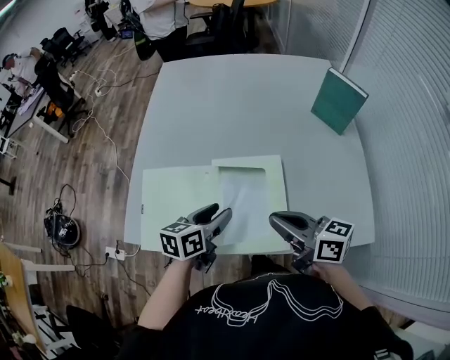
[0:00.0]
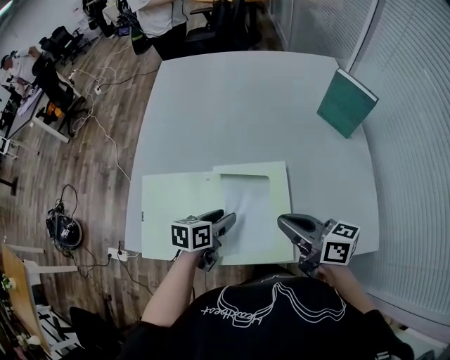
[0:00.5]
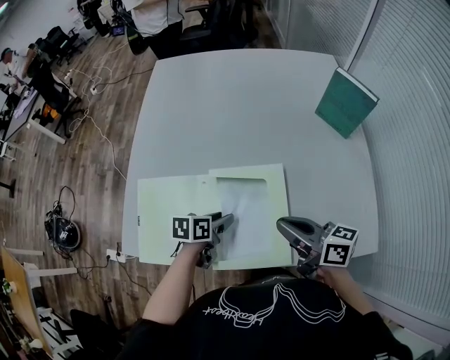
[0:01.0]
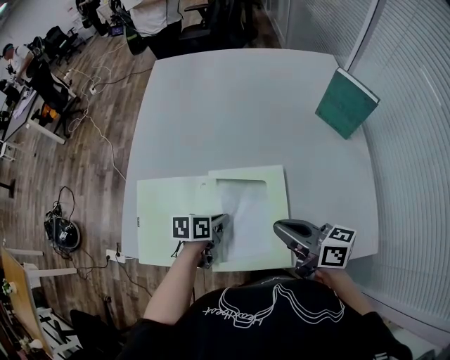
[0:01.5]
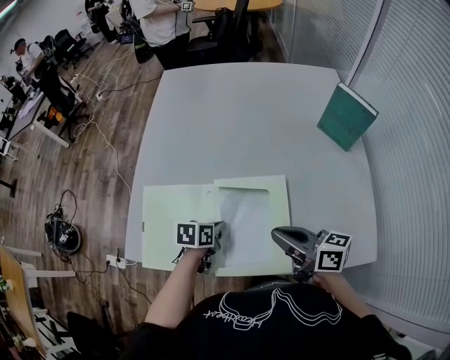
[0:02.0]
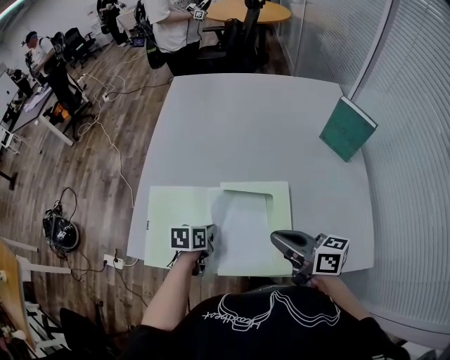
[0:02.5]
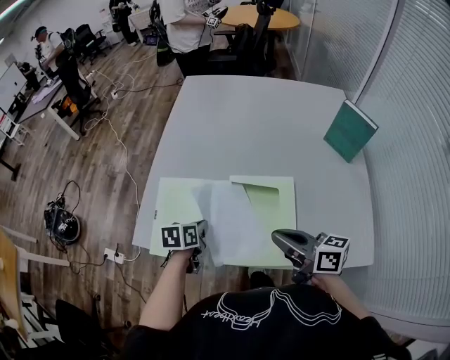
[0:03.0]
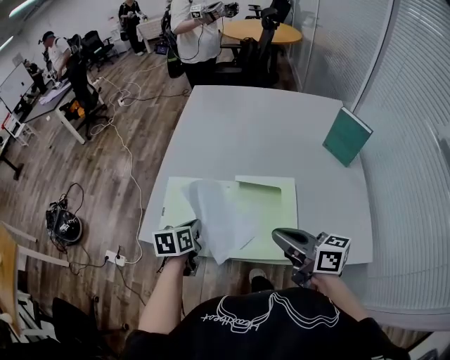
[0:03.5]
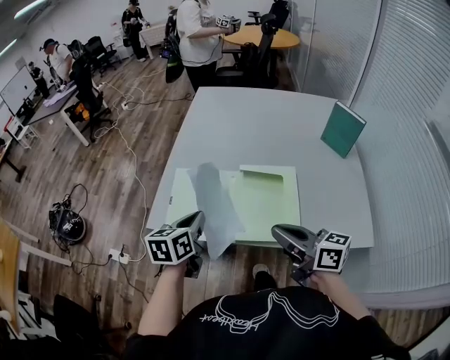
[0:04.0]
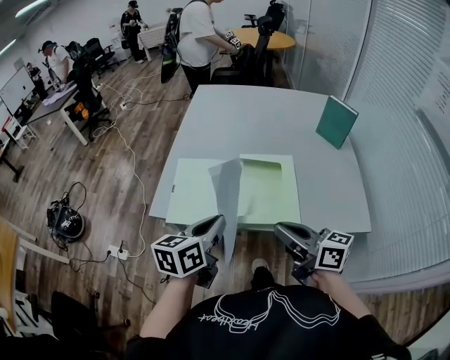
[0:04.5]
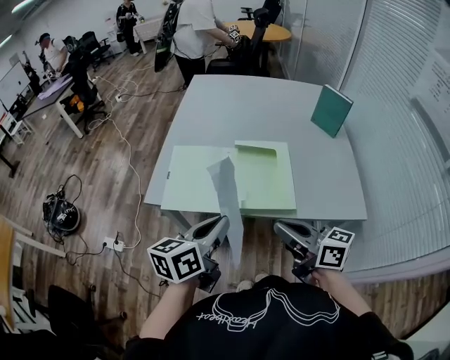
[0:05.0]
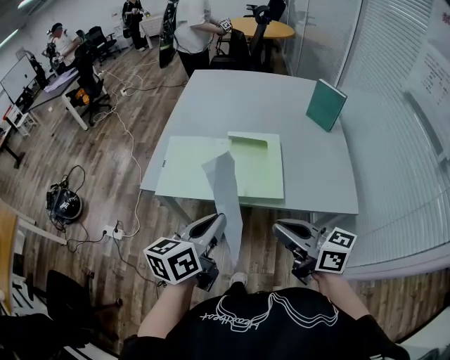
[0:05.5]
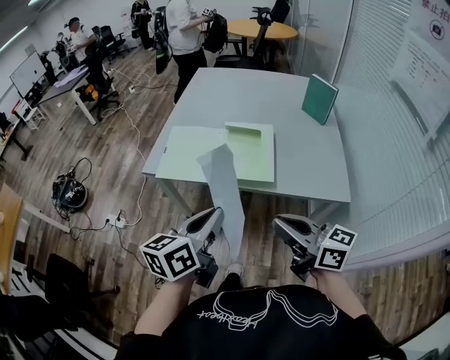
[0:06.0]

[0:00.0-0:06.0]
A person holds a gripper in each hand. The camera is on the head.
0:00.0 to 0:02.0: The right gripper ends up approximately 5 cm from where it was; the left gripper is displaced downward by about 10 cm, rotates about 20 degrees, and closes.
0:02.0 to 0:04.0: The left gripper moves upward, to the left and backward, about 25 cm, and changes its angle by some 30 degrees; the right gripper is displaced backward, to the left and upward by about 20 cm.
0:04.0 to 0:06.0: The two grippers go approximately 30 cm backward.

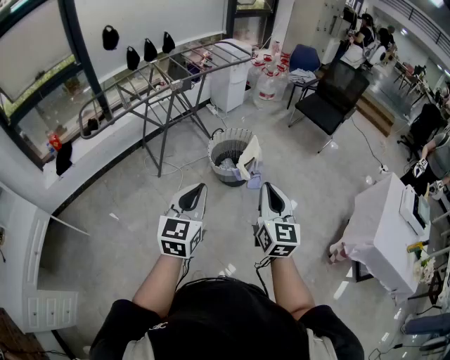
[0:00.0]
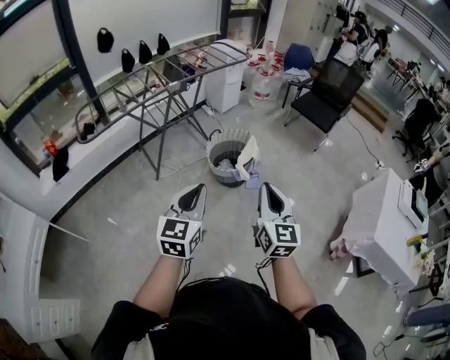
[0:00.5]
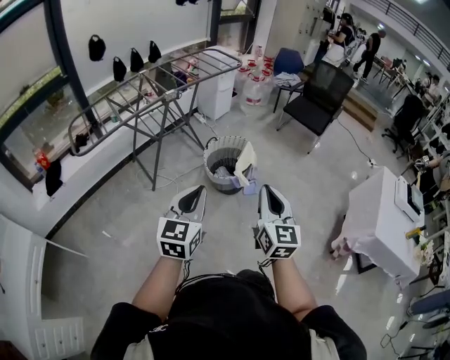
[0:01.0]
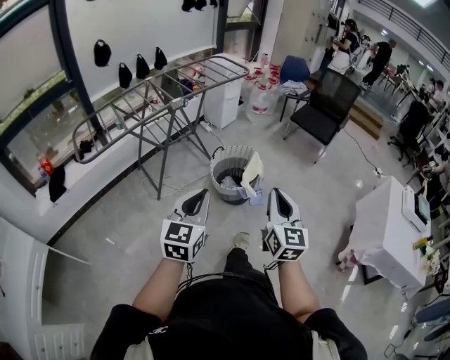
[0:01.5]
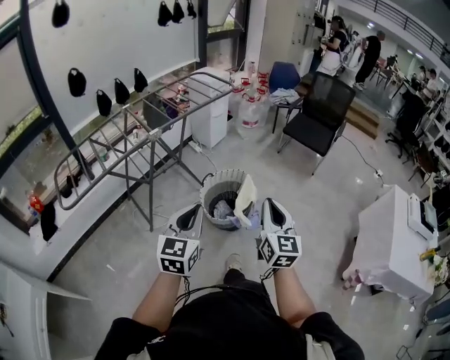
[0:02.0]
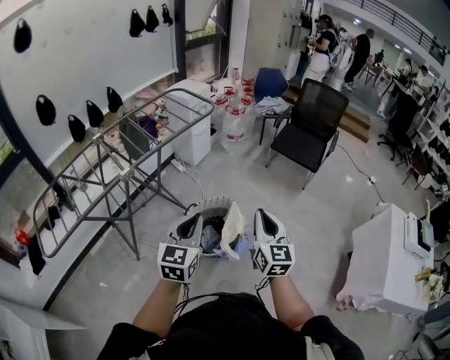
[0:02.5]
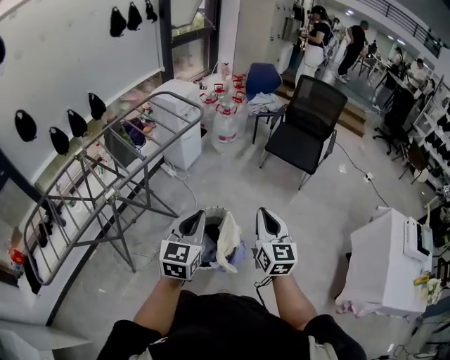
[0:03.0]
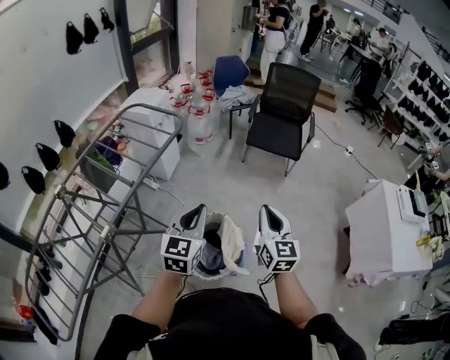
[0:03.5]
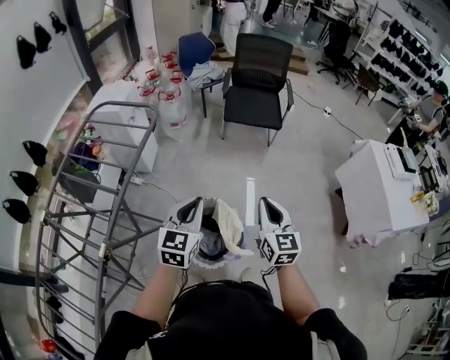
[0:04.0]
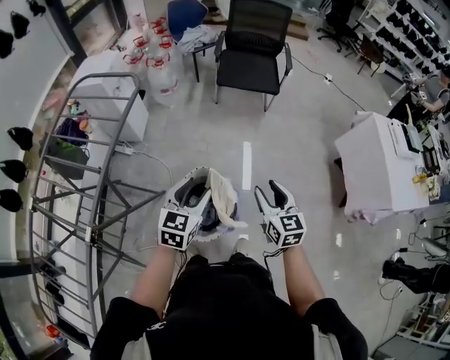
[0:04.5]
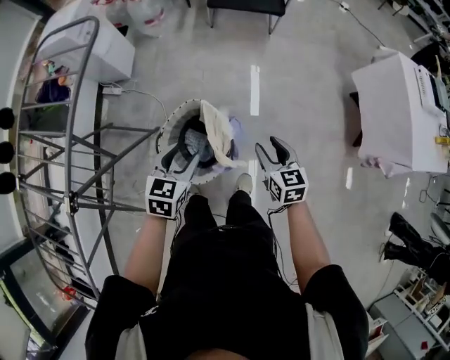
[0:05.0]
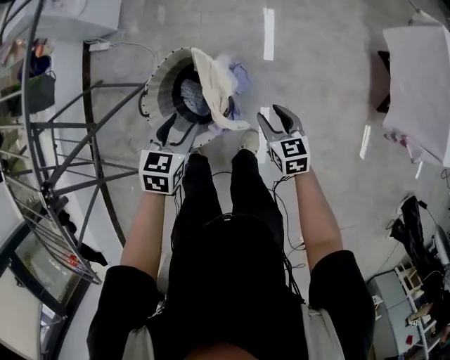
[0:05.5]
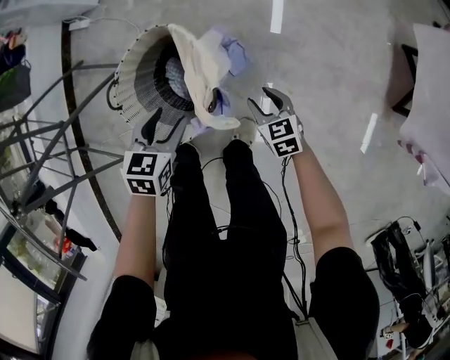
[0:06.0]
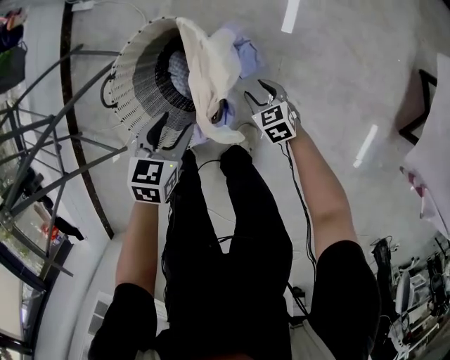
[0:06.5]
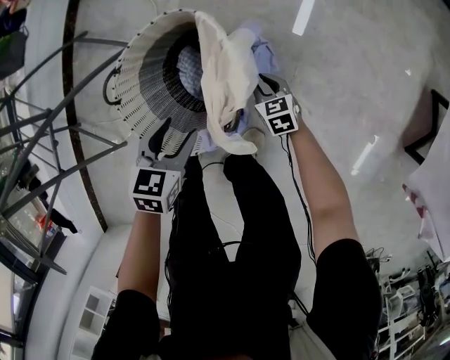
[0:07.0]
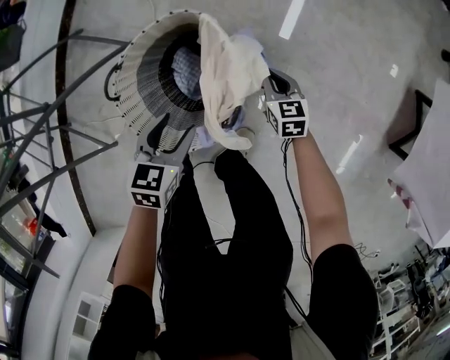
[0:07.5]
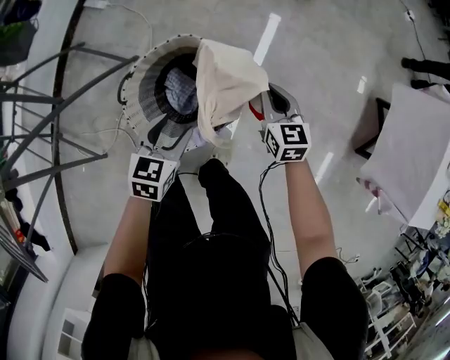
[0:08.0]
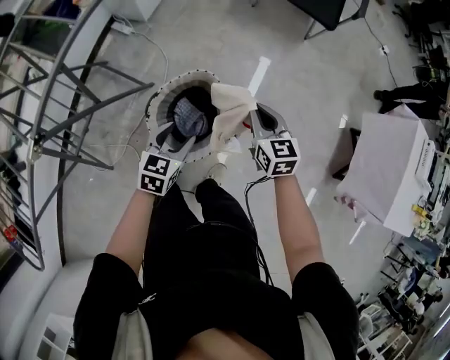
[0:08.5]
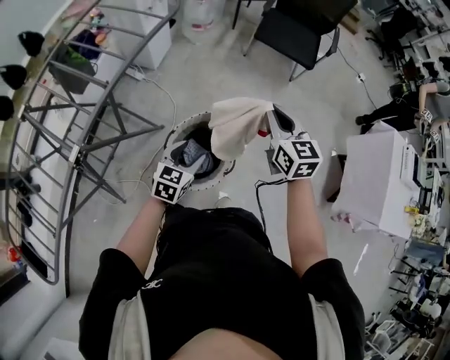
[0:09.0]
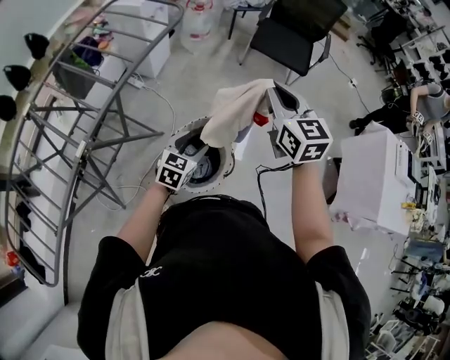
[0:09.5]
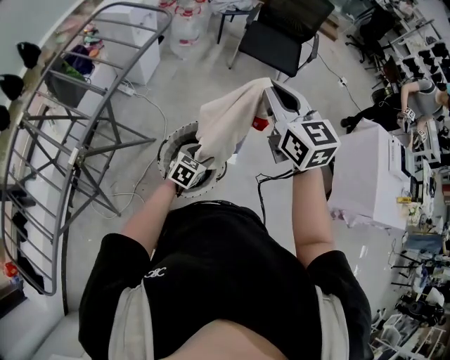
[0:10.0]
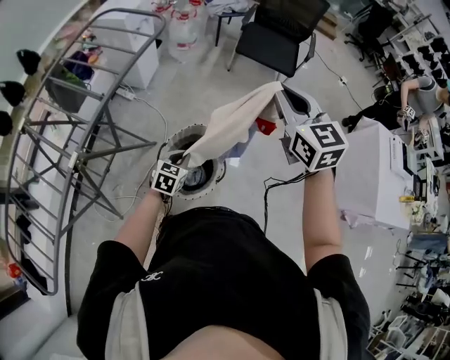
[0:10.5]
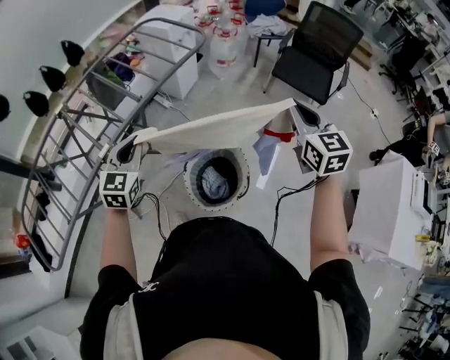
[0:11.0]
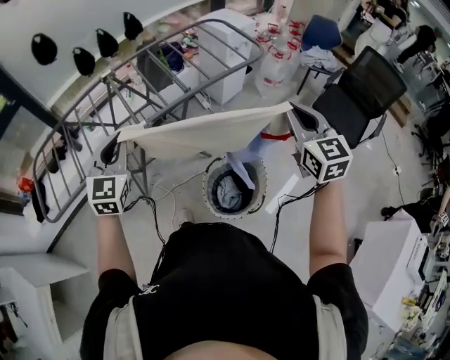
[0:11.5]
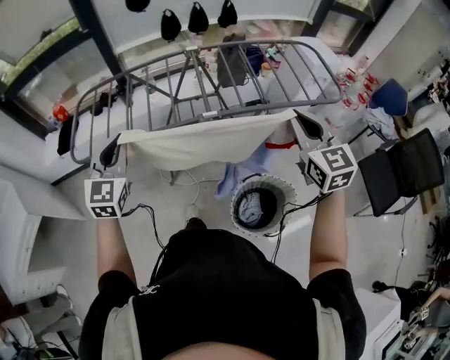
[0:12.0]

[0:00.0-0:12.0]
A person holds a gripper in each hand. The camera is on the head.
0:00.0 to 0:02.0: The grippers both shift forward by some 25 cm.
0:02.0 to 0:04.0: The left gripper ends up approximately 50 cm from where it was, and swivels about 40 degrees; the right gripper moves approximately 40 cm, and rotates approximately 30 degrees.
0:04.0 to 0:06.0: The grippers both shift downward by some 60 cm. The right gripper angles its fingers downward, by some 40 degrees, and opens its fingers. Meanwhile the left gripper tips its fingers downward by some 40 degrees, and opens its fingers.
0:06.0 to 0:08.0: The right gripper moves upward and forward, approximately 20 cm, and closes. Meanwhile the left gripper moves to the left, roughly 5 cm, and travels downward and back again, some 10 cm each way.
0:08.0 to 0:10.0: The left gripper moves upward, some 15 cm. Meanwhile the right gripper is displaced upward by roughly 60 cm, and rotates some 30 degrees.
0:10.0 to 0:12.0: The left gripper shifts by some 60 cm, turns by some 90 degrees, and closes its fingers. Meanwhile the right gripper changes place by some 30 cm, and changes its angle by some 50 degrees.

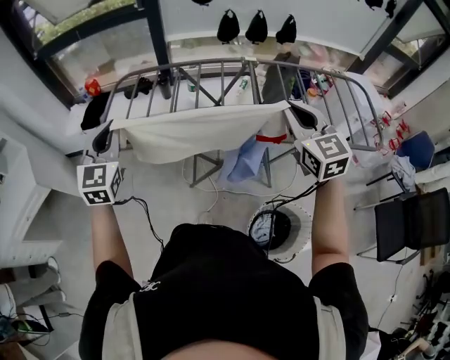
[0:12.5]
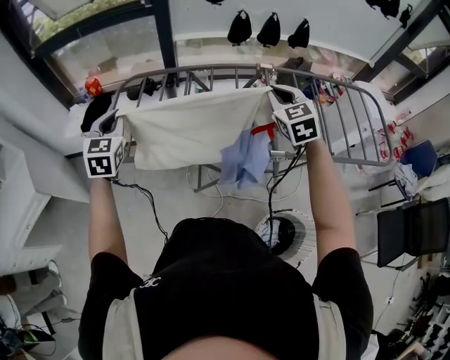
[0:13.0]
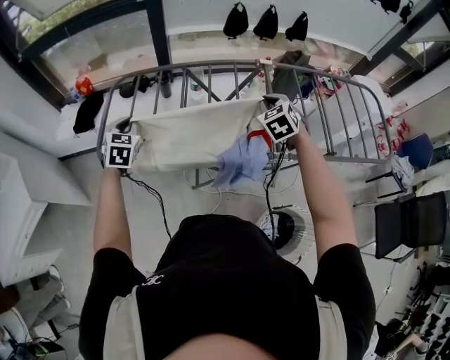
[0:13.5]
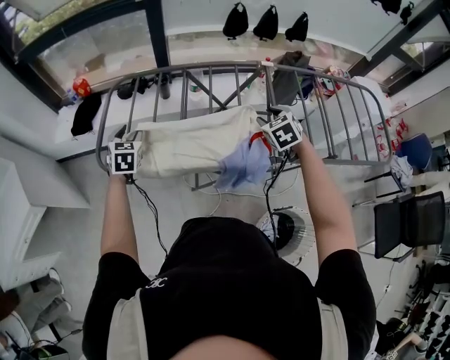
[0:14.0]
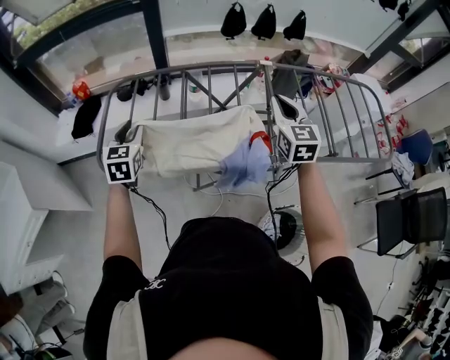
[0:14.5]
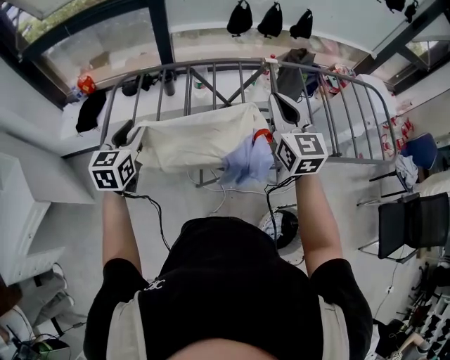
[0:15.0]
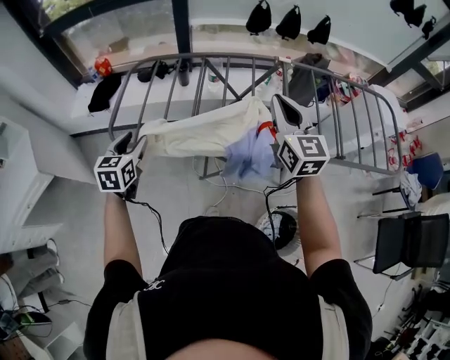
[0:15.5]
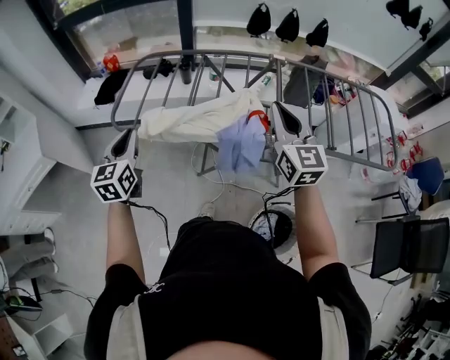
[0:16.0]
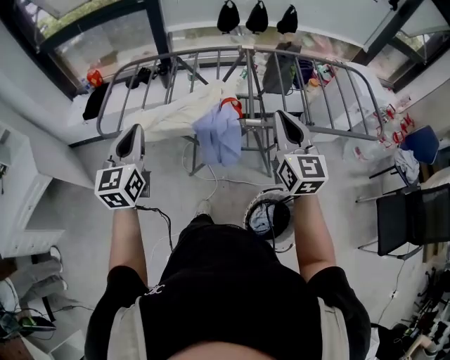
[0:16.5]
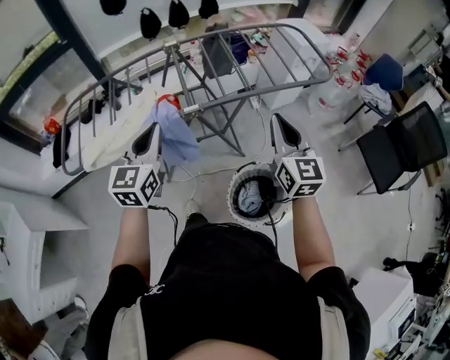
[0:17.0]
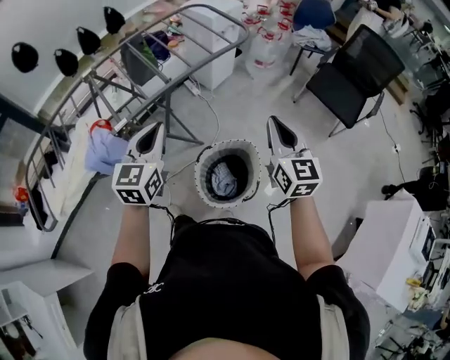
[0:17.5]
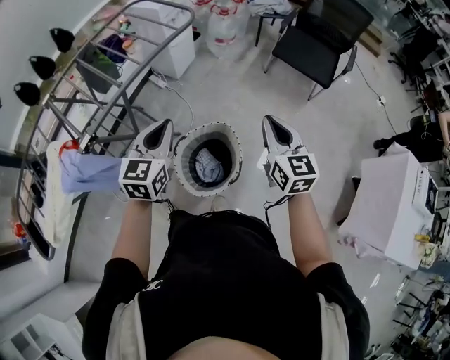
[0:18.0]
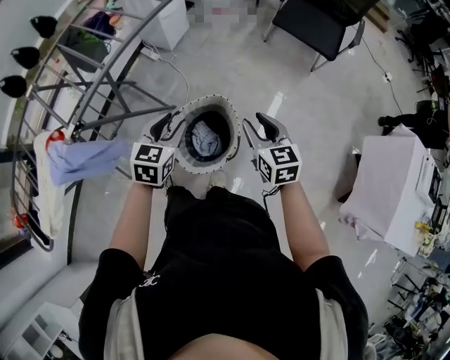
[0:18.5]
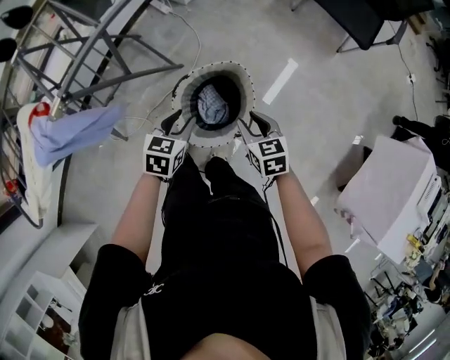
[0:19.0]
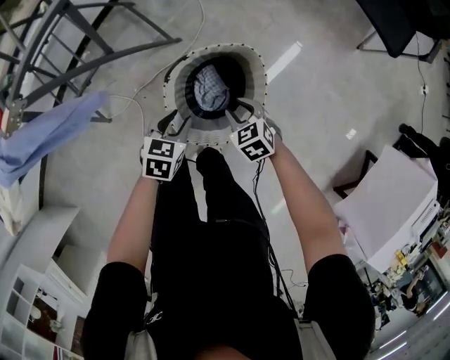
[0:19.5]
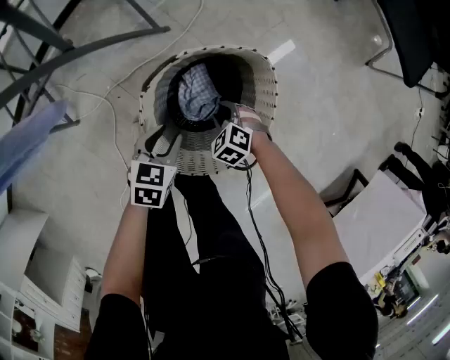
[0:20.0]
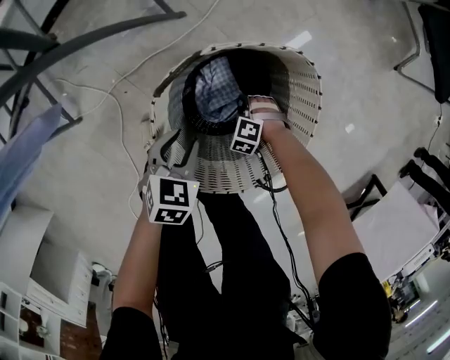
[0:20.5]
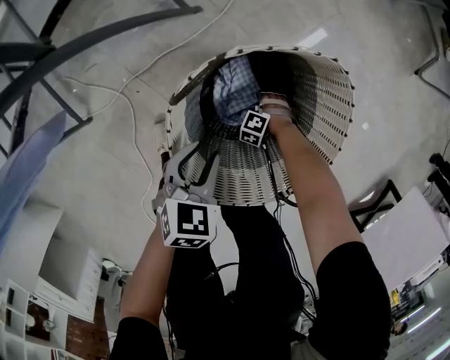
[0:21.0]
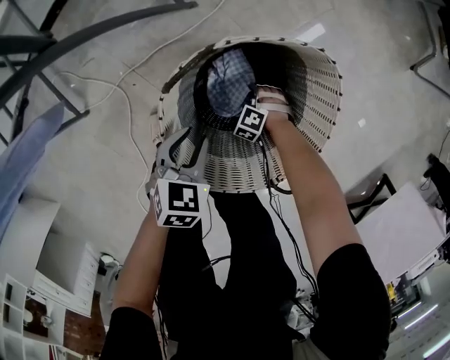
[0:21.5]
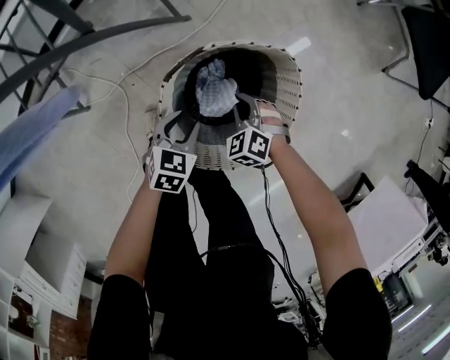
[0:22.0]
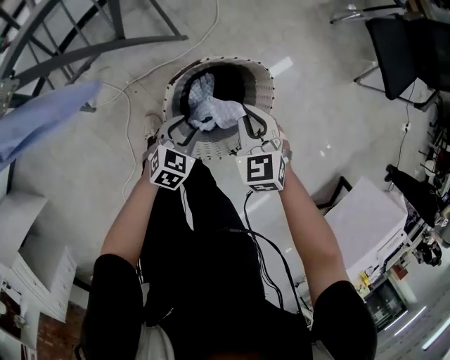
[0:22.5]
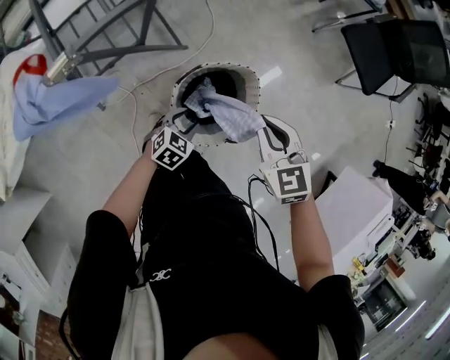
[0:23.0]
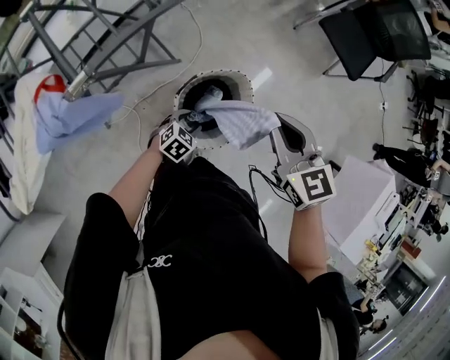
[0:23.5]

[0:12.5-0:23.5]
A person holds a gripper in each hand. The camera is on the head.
0:12.5 to 0:14.5: Both grippers move forward and downward, some 20 cm. The right gripper opens, then closes once more. Meanwhile the left gripper turns by about 20 degrees, and opens its fingers.
0:14.5 to 0:16.0: The right gripper moves backward and upward, approximately 15 cm; the left gripper heads backward, covering some 20 cm.
0:16.0 to 0:18.0: The two grippers travel together, some 70 cm. The right gripper swivels roughly 60 degrees, while the left gripper changes its angle by about 80 degrees.
0:18.0 to 0:20.0: Both grippers travel together downward, approximately 60 cm. The right gripper tips its fingers downward by approximately 60 degrees, and opens; the left gripper tips its fingers downward by about 40 degrees, and opens its fingers.
0:20.0 to 0:21.5: The right gripper heads downward, covering approximately 20 cm, turns by about 20 degrees, and closes up. The left gripper moves downward, roughly 10 cm.
0:21.5 to 0:23.5: The right gripper moves upward, approximately 80 cm, and tilts its fingers some 50 degrees upward, while the left gripper heads upward, covering about 30 cm, and rotates about 30 degrees.
